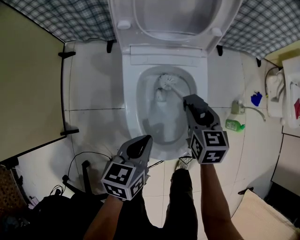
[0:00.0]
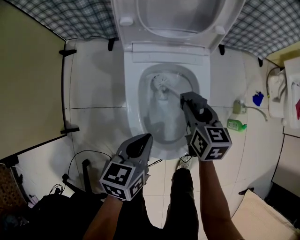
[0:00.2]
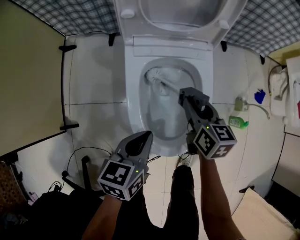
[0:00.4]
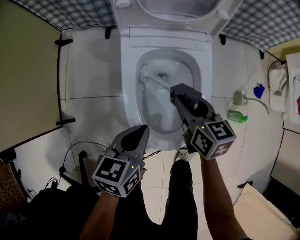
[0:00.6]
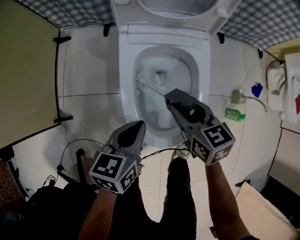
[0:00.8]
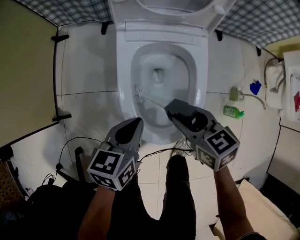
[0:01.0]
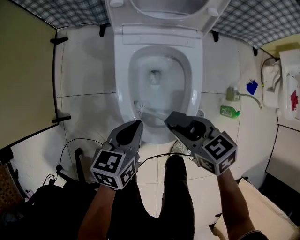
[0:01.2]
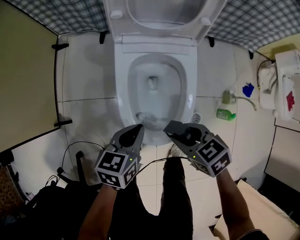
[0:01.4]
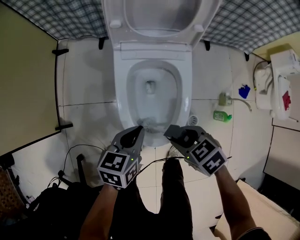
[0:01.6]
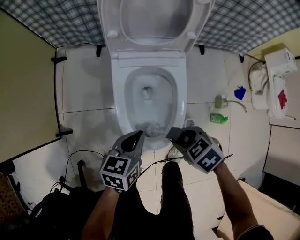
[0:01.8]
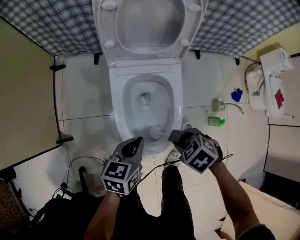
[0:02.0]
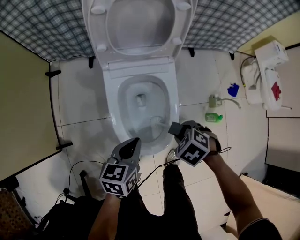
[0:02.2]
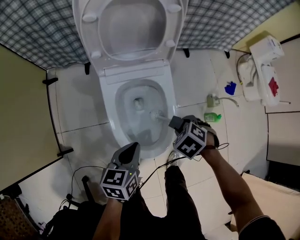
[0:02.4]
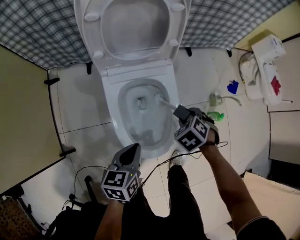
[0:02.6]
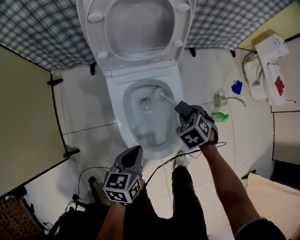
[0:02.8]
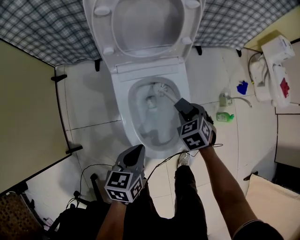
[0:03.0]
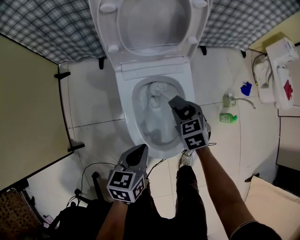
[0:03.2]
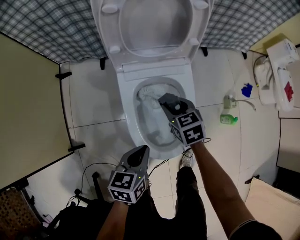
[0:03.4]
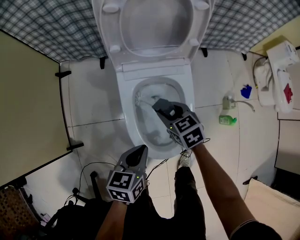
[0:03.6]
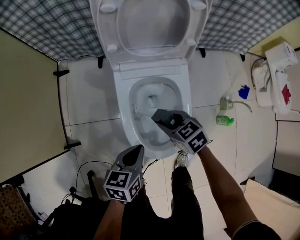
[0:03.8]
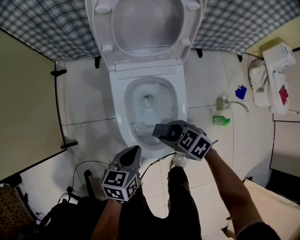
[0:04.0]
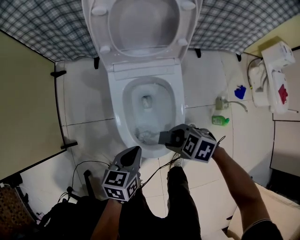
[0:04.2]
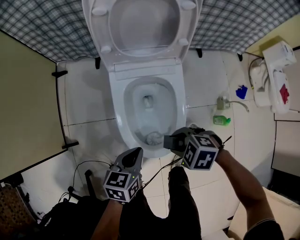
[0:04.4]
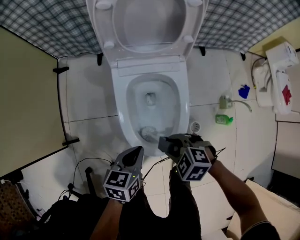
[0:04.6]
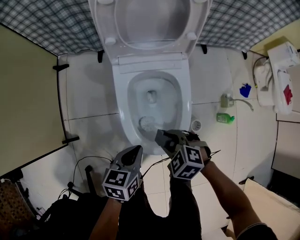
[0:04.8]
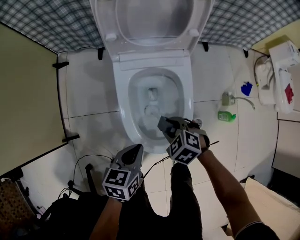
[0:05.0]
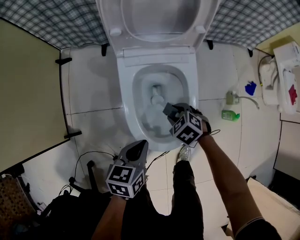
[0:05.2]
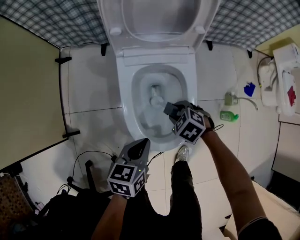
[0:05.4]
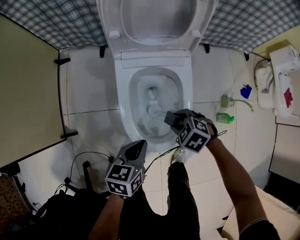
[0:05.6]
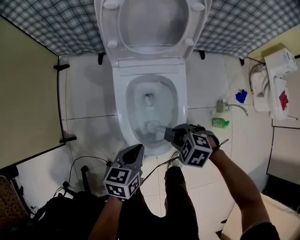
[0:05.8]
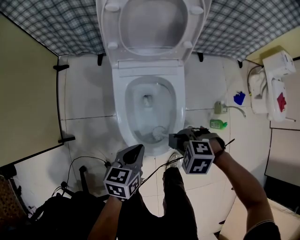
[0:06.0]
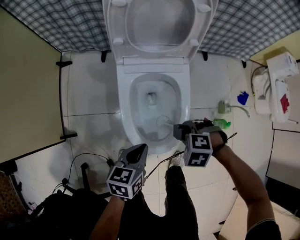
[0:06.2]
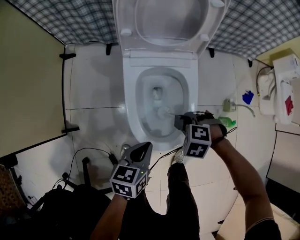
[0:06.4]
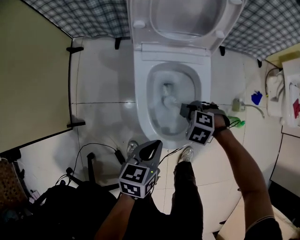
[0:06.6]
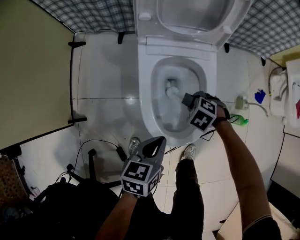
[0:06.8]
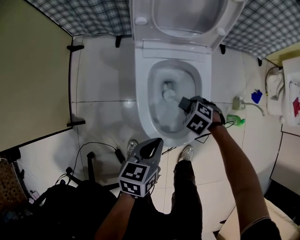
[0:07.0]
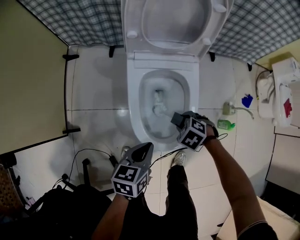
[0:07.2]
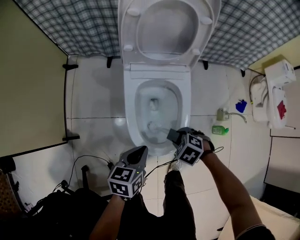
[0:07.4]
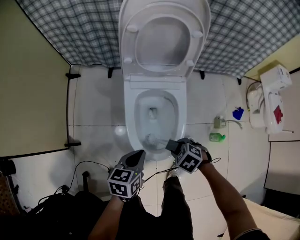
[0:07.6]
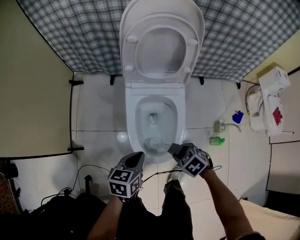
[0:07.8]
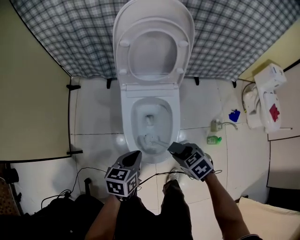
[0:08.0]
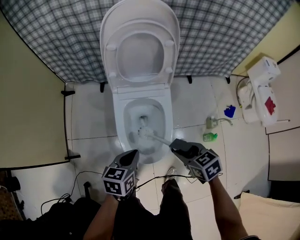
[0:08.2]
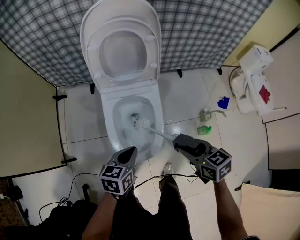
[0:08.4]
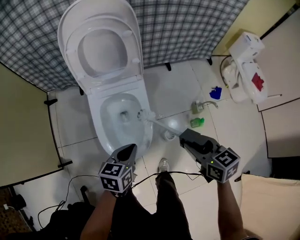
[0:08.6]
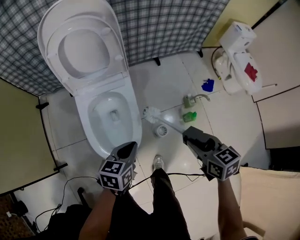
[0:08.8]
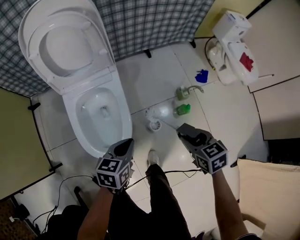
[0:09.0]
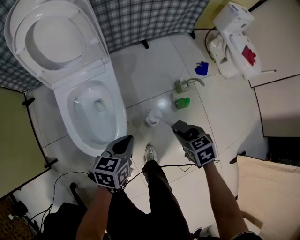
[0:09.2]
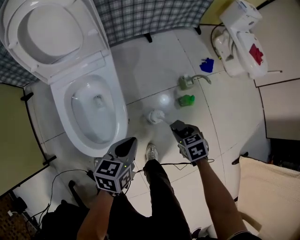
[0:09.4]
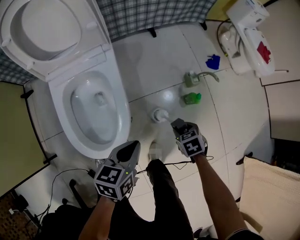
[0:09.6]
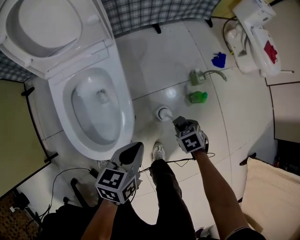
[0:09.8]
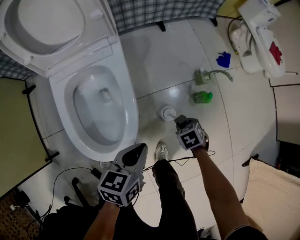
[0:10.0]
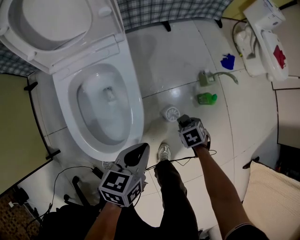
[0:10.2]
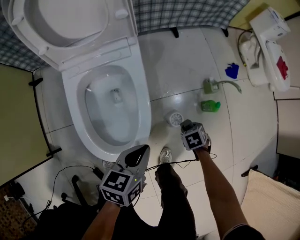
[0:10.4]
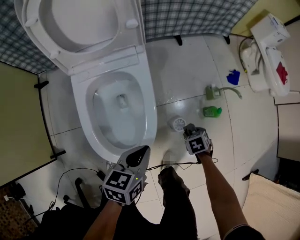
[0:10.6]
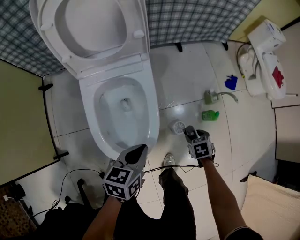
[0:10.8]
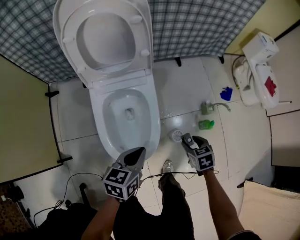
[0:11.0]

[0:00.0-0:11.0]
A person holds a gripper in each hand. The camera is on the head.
0.0 to 1.6 s: The right gripper changes place by some 15 cm, and changes its angle by some 50 degrees.
1.6 to 3.2 s: The right gripper shifts by about 15 cm, and turns by about 40 degrees.
3.2 to 4.8 s: The right gripper moves some 15 cm, and rotates some 40 degrees.
4.8 to 6.2 s: The right gripper reaches approximately 10 cm downward, then returns, and rotates roughly 30 degrees.
6.2 to 7.8 s: The right gripper travels downward and back again, about 10 cm each way, and changes its angle by about 40 degrees. Meanwhile the left gripper moves approximately 5 cm.
7.8 to 9.4 s: The right gripper shifts by roughly 30 cm, and rotates around the line of its fingers by approximately 40 degrees, clockwise from behind, while the left gripper changes place by about 25 cm, and changes its angle by some 20 degrees.
9.4 to 11.0 s: The right gripper reaches roughly 15 cm downward, then returns; the left gripper ends up roughly 10 cm from where it was.

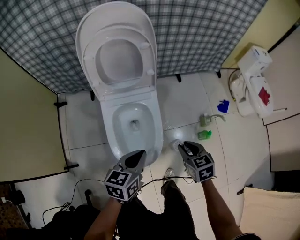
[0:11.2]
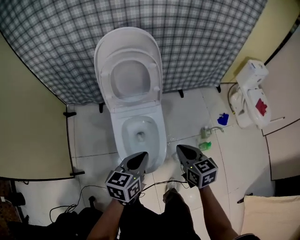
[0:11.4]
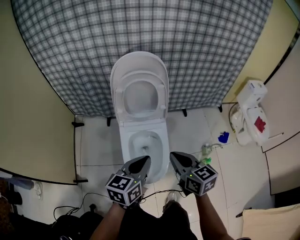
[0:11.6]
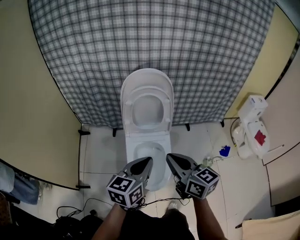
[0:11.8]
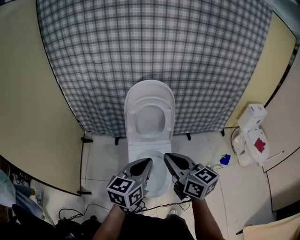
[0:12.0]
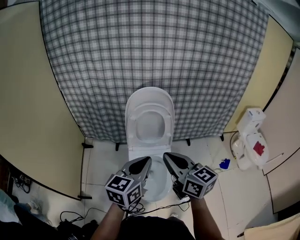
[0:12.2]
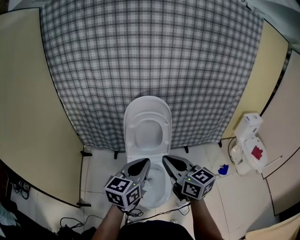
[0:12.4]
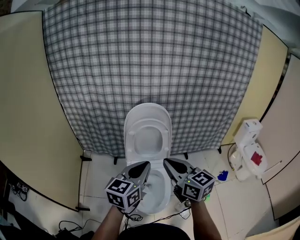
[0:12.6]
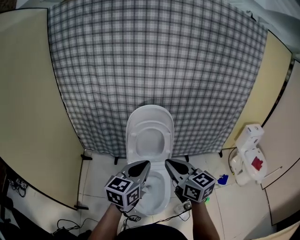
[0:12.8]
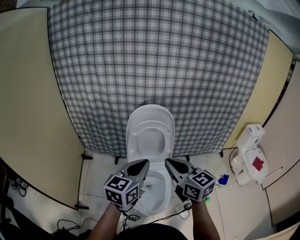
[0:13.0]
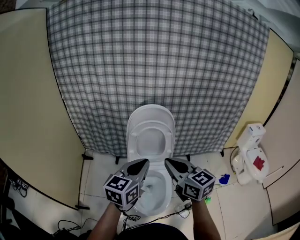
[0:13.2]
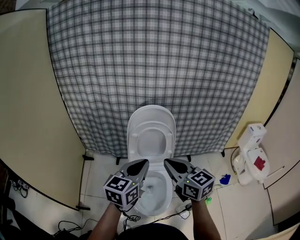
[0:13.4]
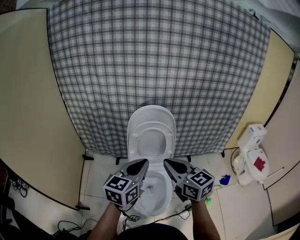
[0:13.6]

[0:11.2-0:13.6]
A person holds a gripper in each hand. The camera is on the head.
11.2 to 12.4 s: The left gripper moves upward, about 30 cm, and changes its angle by roughly 30 degrees. Meanwhile the right gripper goes roughly 40 cm upward and to the left, tilts its fingers about 40 degrees upward, and closes up.
12.4 to 13.6 s: There are only small adjustments of the grippers.

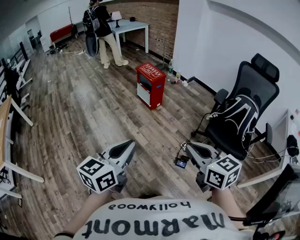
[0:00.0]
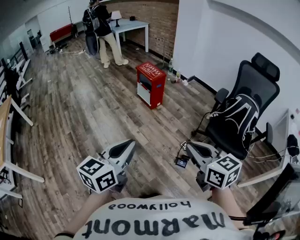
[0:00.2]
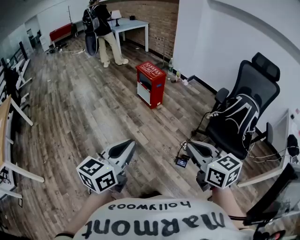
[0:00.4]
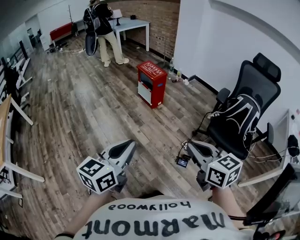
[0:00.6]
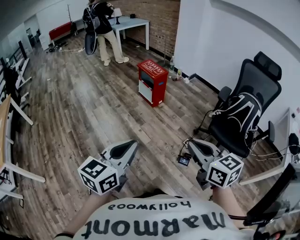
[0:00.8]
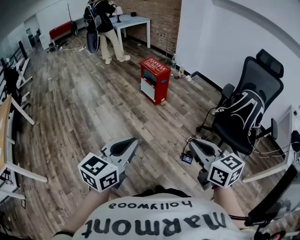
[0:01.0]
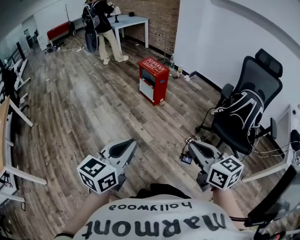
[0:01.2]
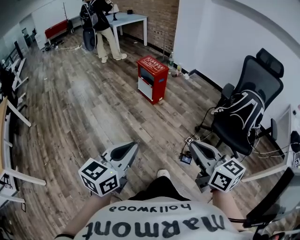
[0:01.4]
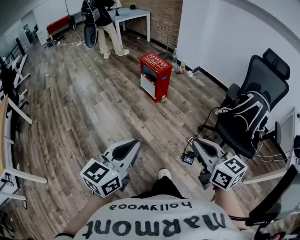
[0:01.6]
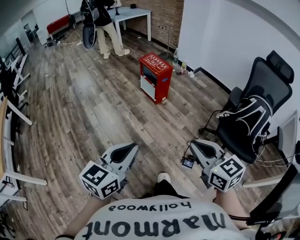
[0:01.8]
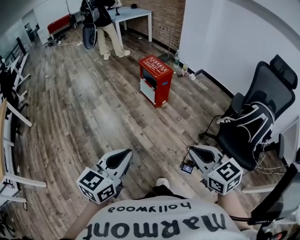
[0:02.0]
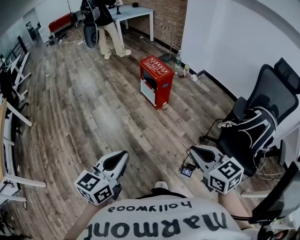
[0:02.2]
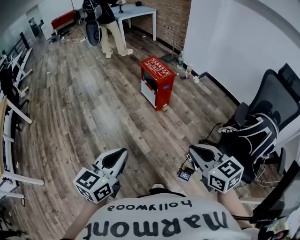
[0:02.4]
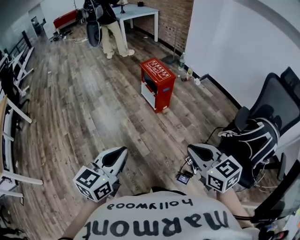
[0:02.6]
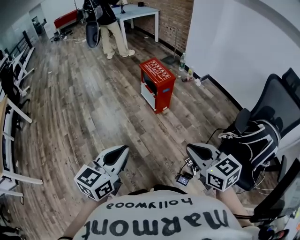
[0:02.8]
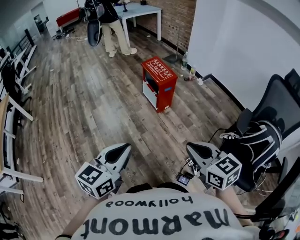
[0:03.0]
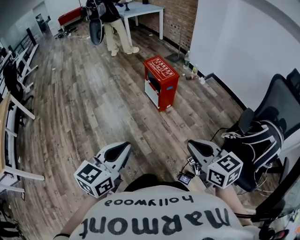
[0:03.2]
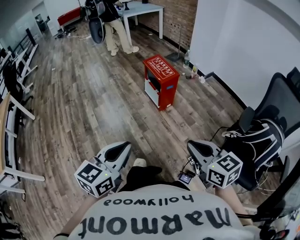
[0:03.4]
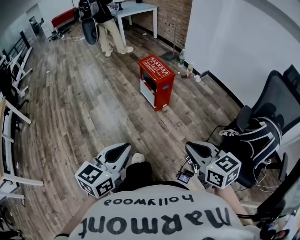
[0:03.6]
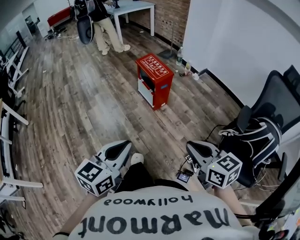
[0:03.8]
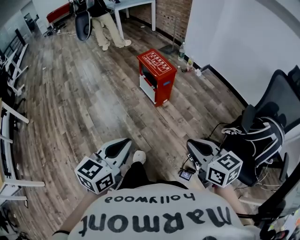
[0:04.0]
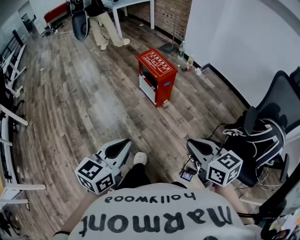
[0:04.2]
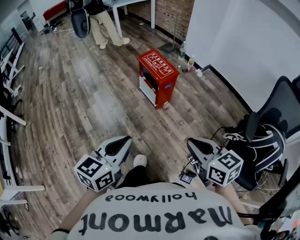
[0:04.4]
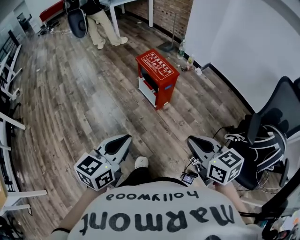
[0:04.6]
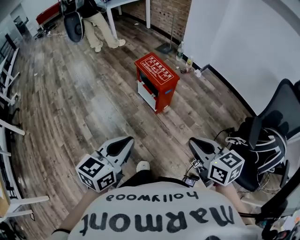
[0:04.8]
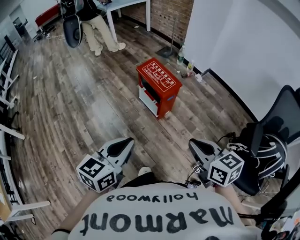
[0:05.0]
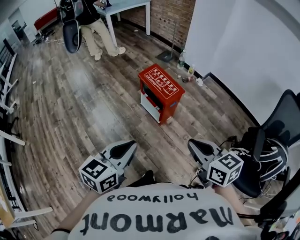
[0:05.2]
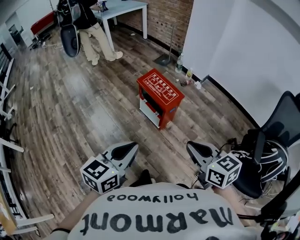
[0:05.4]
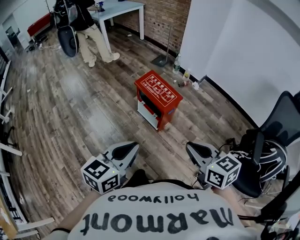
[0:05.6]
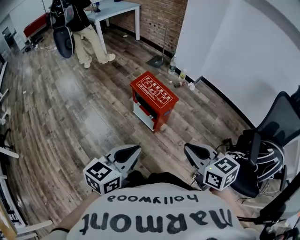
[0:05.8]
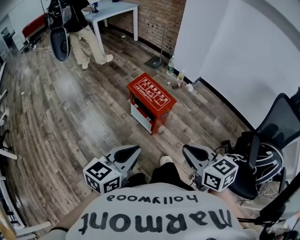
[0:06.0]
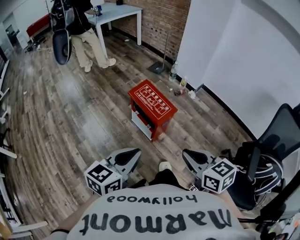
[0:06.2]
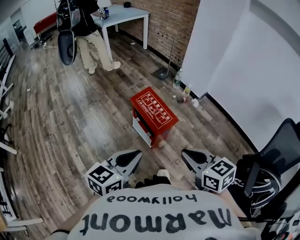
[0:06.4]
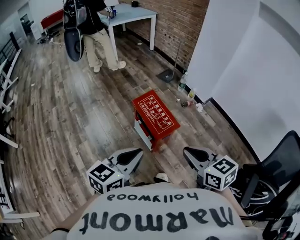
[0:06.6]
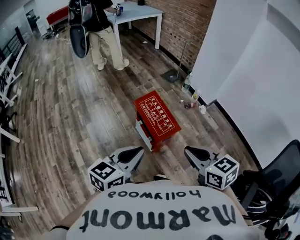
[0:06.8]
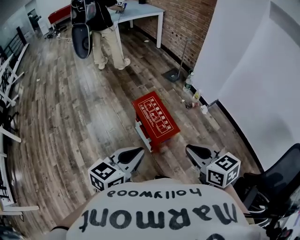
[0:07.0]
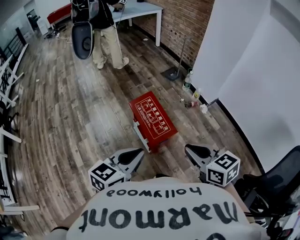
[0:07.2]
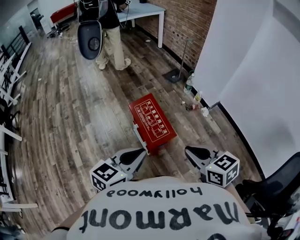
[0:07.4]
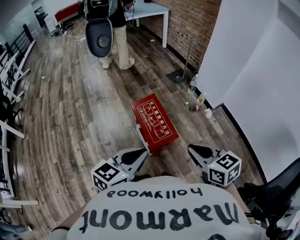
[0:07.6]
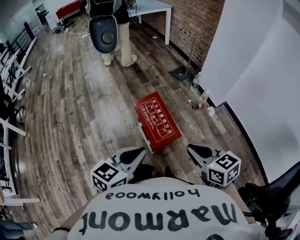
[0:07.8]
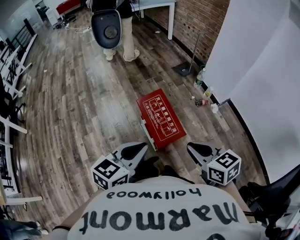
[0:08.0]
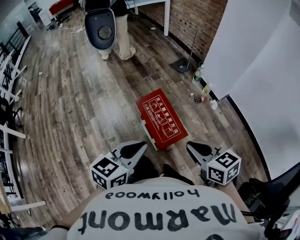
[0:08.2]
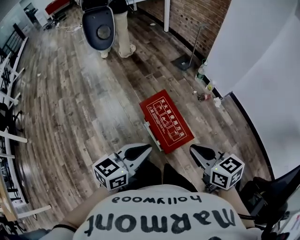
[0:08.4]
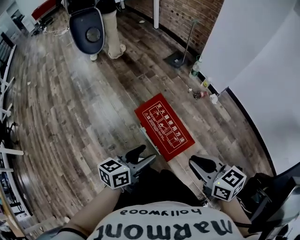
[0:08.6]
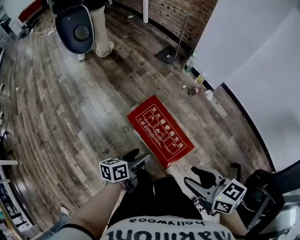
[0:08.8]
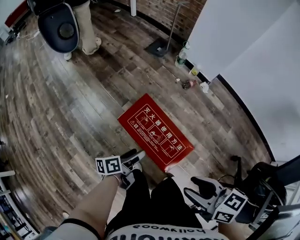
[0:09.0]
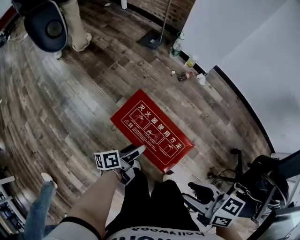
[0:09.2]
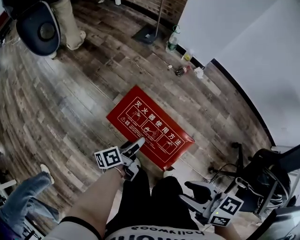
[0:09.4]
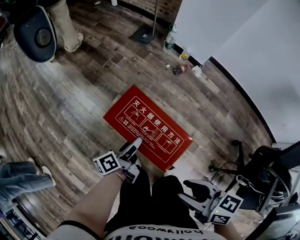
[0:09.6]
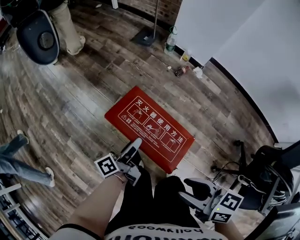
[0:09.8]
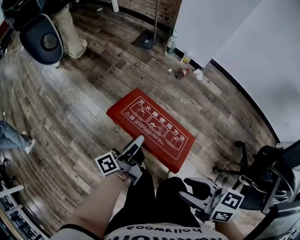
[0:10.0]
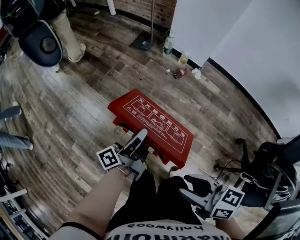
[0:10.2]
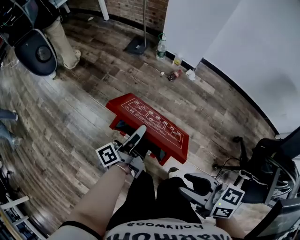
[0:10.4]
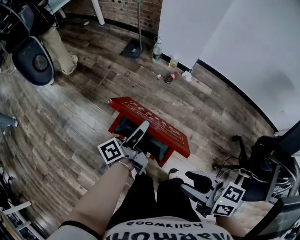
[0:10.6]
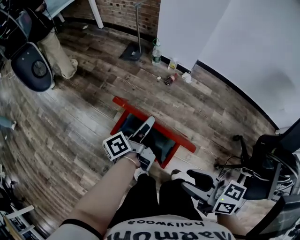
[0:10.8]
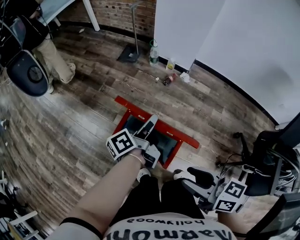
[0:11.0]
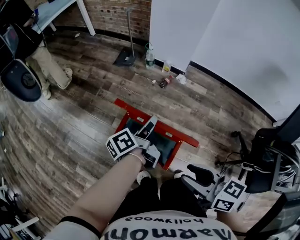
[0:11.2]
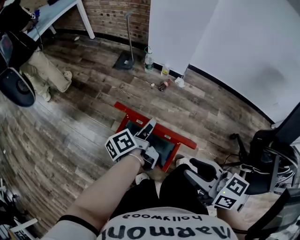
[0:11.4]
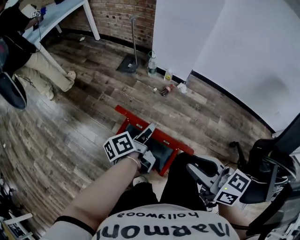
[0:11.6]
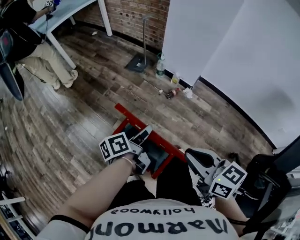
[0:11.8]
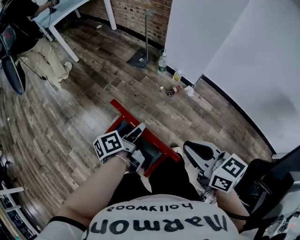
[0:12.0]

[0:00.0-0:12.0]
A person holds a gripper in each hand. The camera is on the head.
0.0 to 1.6 s: Both grippers move forward, approximately 5 cm.
1.6 to 3.0 s: Both grippers move forward, about 20 cm.
3.0 to 4.4 s: The grippers both shift forward by approximately 15 cm.
4.4 to 6.0 s: Both grippers move forward, roughly 20 cm.
6.0 to 7.6 s: The grippers both shift forward and to the right by approximately 25 cm. The right gripper rotates approximately 20 degrees.
7.6 to 9.0 s: The right gripper shifts some 15 cm downward, to the left and forward, swivels approximately 30 degrees, and opens, while the left gripper heads downward and forward, covering approximately 40 cm, twists roughly 50 degrees counterclockwise, seen from behind, and opens.
9.0 to 10.4 s: The left gripper is displaced upward, forward and to the right by roughly 20 cm, points its fingers about 30 degrees further upward, and closes up.
10.4 to 12.0 s: The right gripper travels forward and to the right by roughly 20 cm, and closes up, while the left gripper travels to the right and forward by roughly 10 cm, and rotates some 30 degrees.
